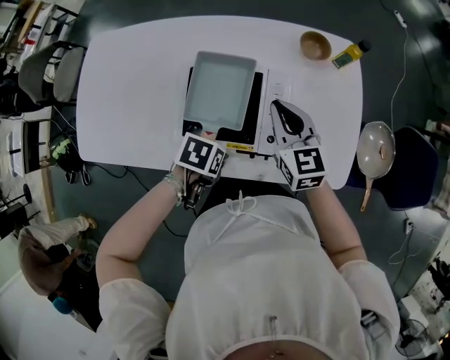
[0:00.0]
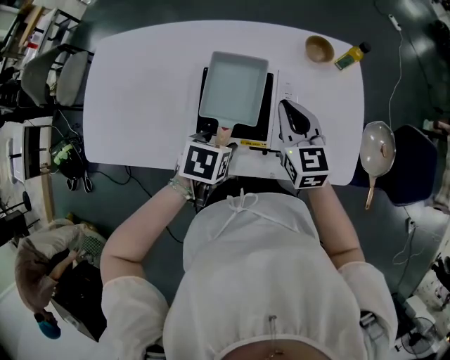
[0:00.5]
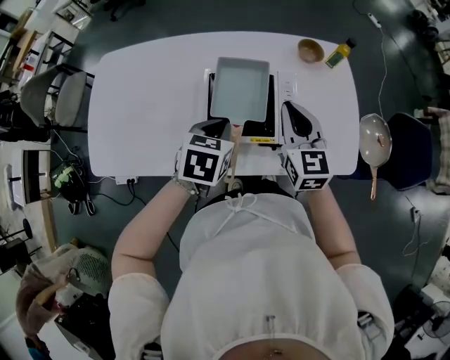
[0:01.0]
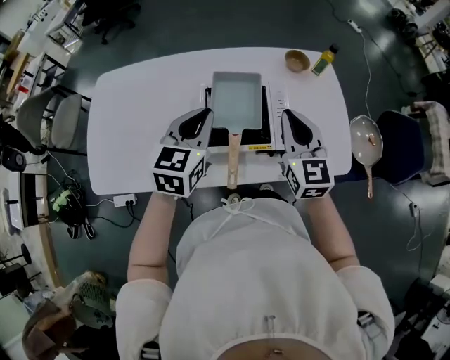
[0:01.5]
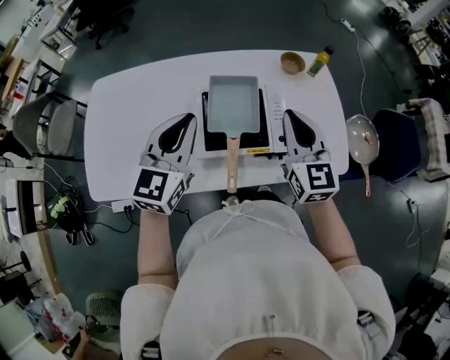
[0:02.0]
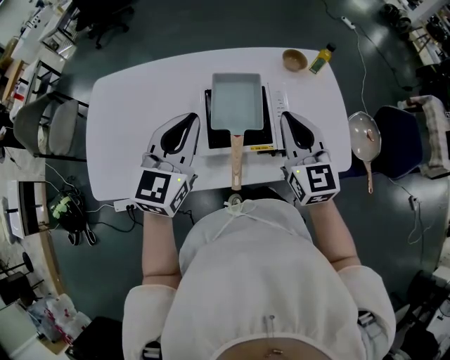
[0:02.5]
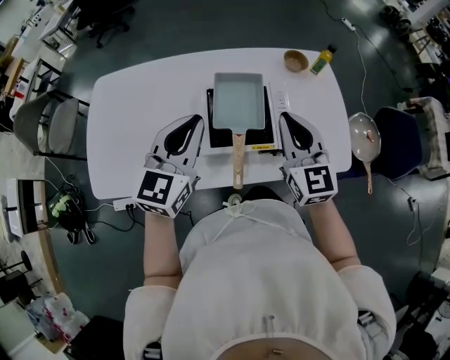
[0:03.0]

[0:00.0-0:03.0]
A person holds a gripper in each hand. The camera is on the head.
0:00.0 to 0:01.5: The right gripper goes about 15 cm upward and backward, and rotates approximately 20 degrees, while the left gripper moves upward and to the left, roughly 25 cm, tilts its fingers roughly 50 degrees upward, and closes its fingers.
0:01.5 to 0:03.0: The left gripper changes place by roughly 5 cm.

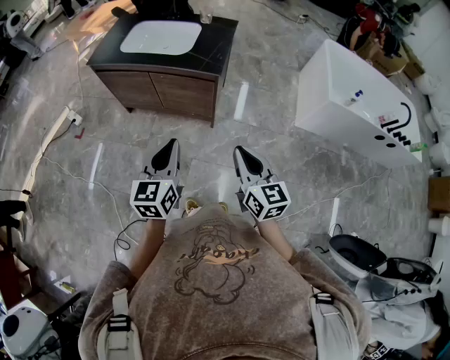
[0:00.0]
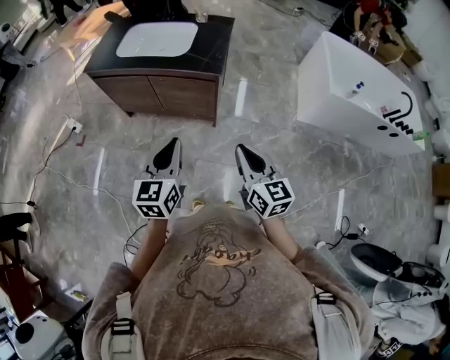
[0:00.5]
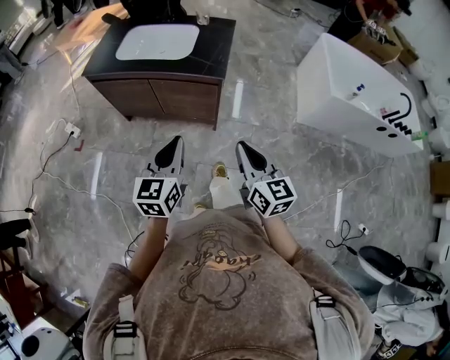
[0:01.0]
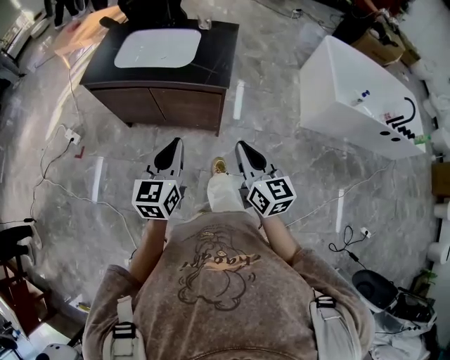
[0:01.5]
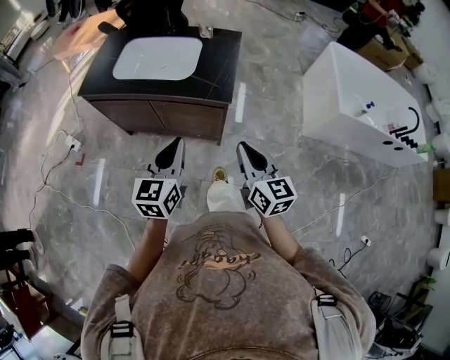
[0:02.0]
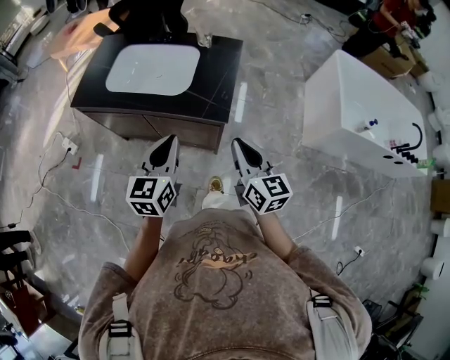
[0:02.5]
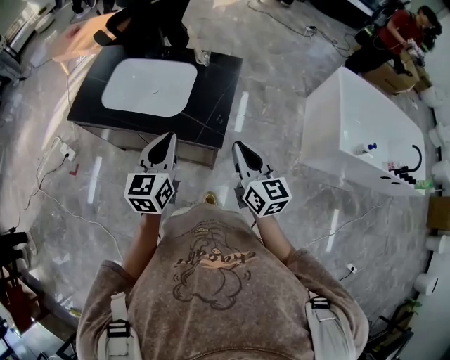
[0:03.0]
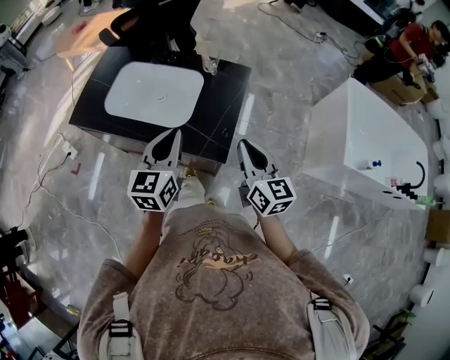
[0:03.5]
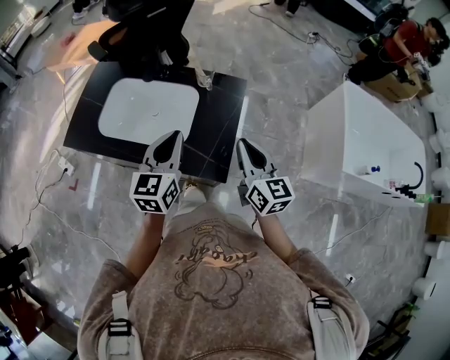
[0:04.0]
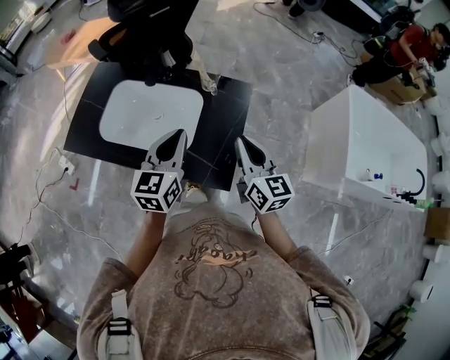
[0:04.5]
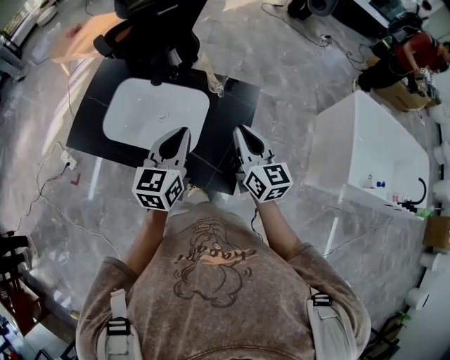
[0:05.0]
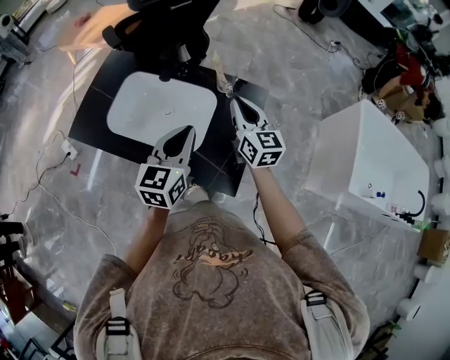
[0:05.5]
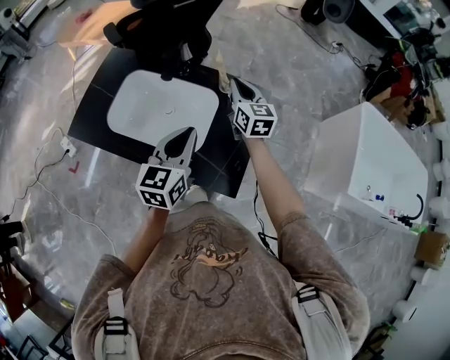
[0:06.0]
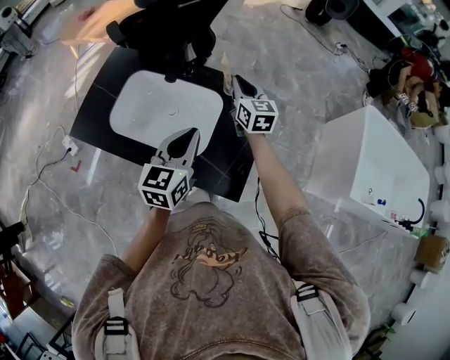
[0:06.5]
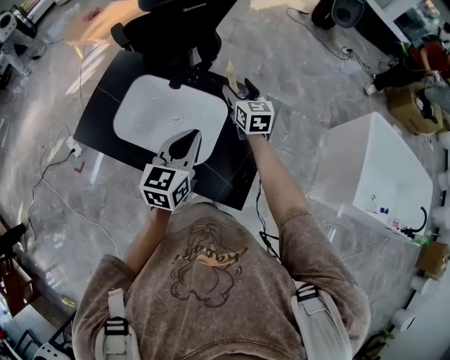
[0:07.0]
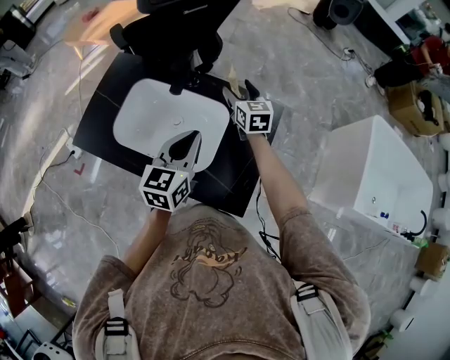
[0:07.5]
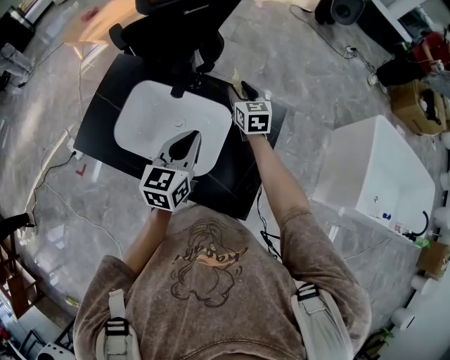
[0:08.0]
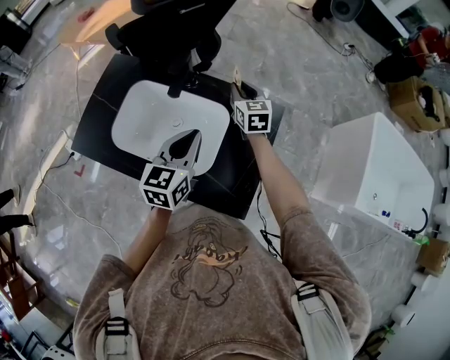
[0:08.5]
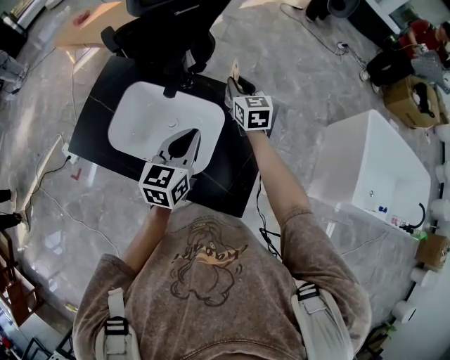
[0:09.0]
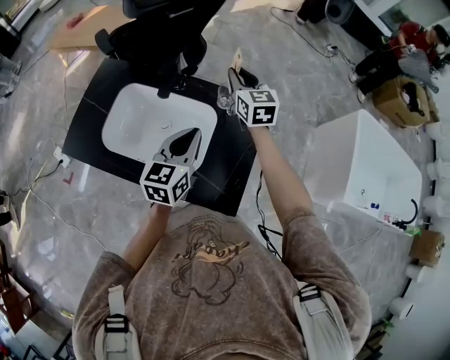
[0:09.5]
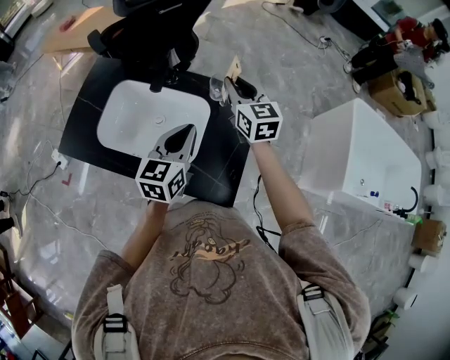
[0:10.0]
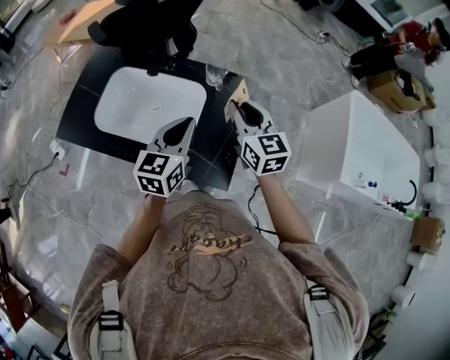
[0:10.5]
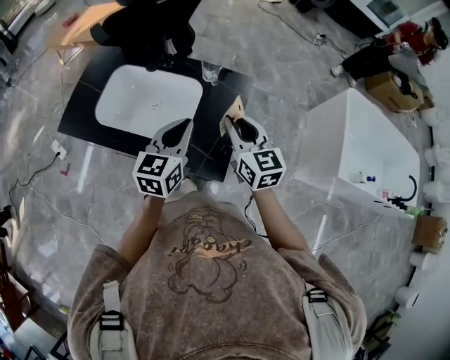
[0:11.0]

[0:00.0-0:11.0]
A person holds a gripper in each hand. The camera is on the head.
0:00.0 to 0:02.0: The grippers both shift forward by about 20 cm.
0:02.0 to 0:03.5: The grippers both shift forward by some 25 cm.
0:03.5 to 0:05.5: The left gripper travels forward by about 15 cm; the right gripper moves forward, roughly 25 cm.
0:05.5 to 0:07.5: The right gripper moves forward and downward, roughly 20 cm, and opens its fingers. Meanwhile the left gripper travels forward by approximately 5 cm.
0:07.5 to 0:09.0: The right gripper closes up.
0:09.0 to 0:11.0: The left gripper moves backward and to the right, roughly 10 cm, while the right gripper travels backward by roughly 30 cm.

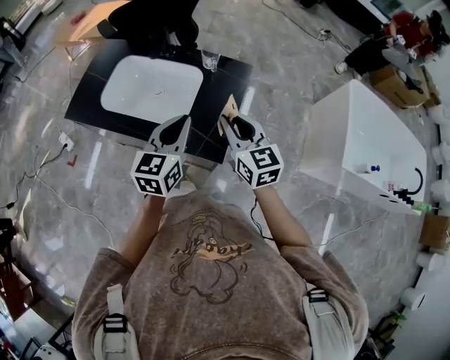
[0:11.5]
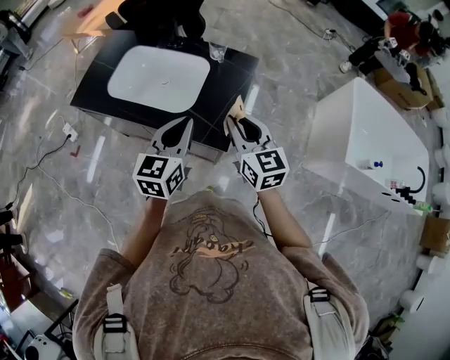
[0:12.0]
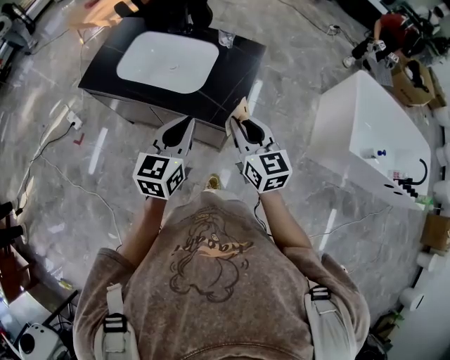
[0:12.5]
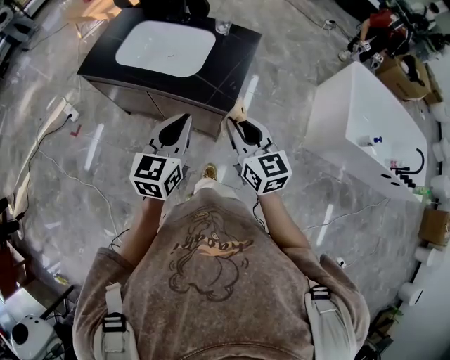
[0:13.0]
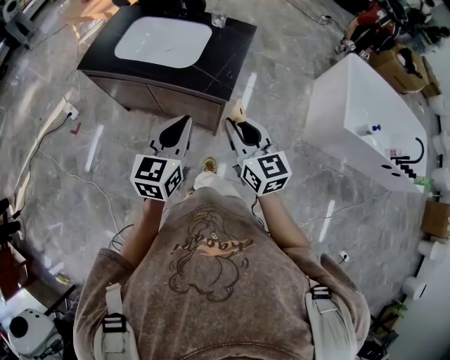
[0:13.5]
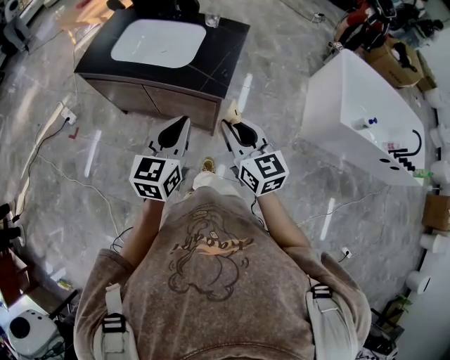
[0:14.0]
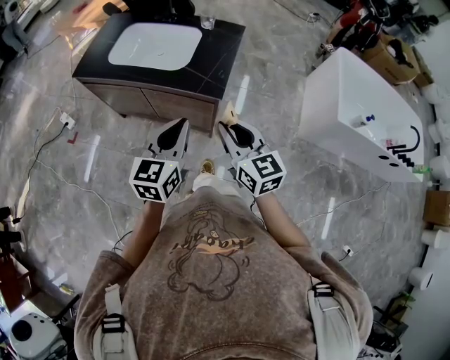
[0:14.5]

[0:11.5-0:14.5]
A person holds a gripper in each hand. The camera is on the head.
0:11.5 to 0:13.0: The two grippers go some 20 cm backward.
0:13.0 to 0:14.5: Both grippers travel together backward, approximately 5 cm.

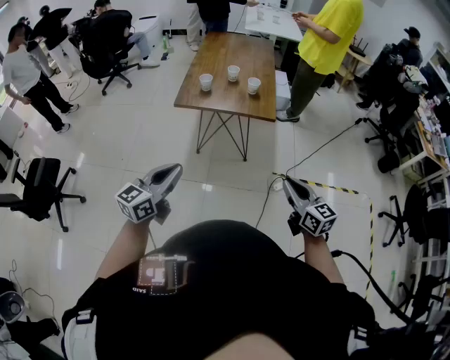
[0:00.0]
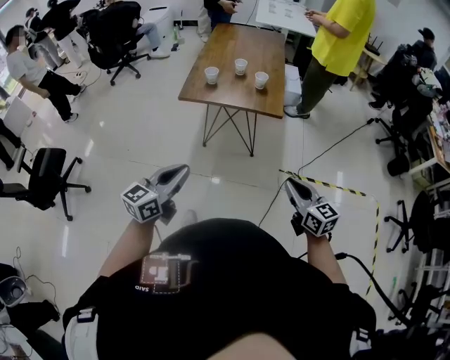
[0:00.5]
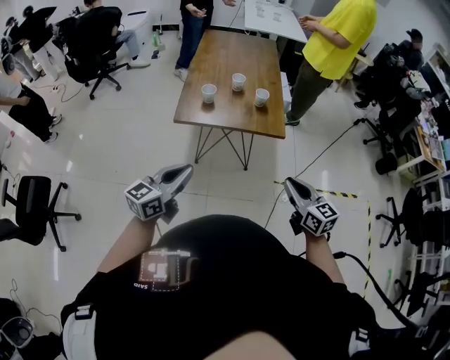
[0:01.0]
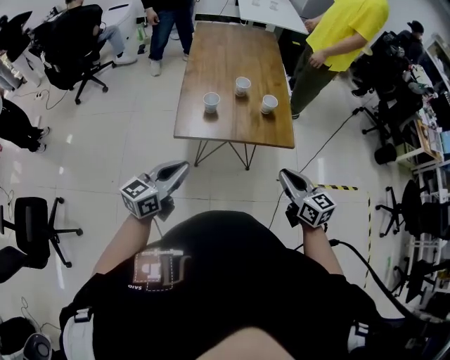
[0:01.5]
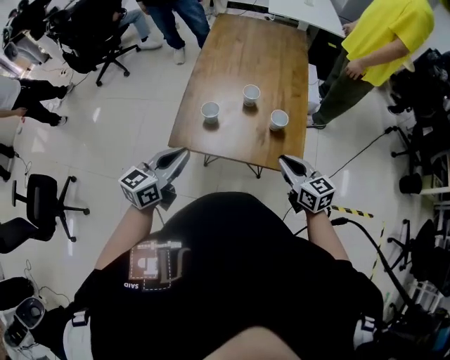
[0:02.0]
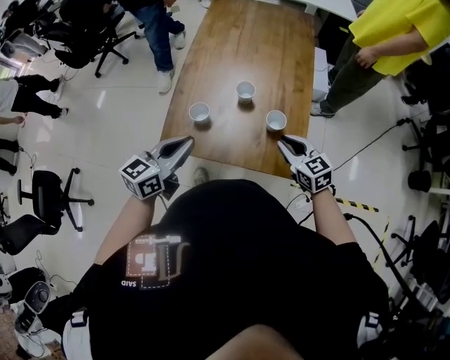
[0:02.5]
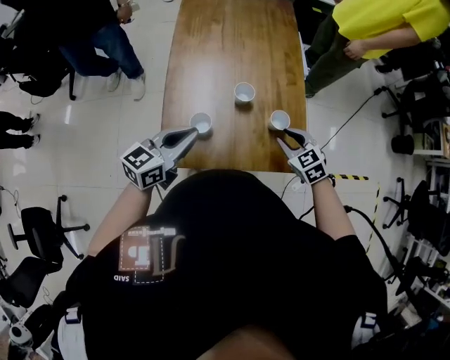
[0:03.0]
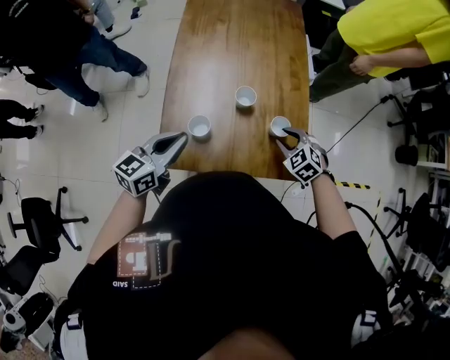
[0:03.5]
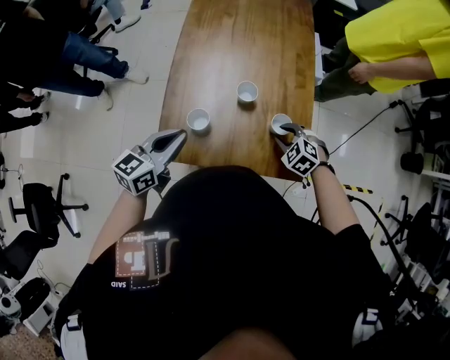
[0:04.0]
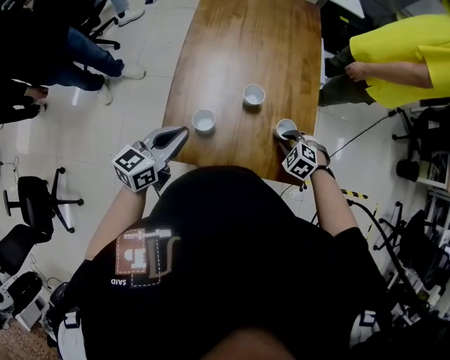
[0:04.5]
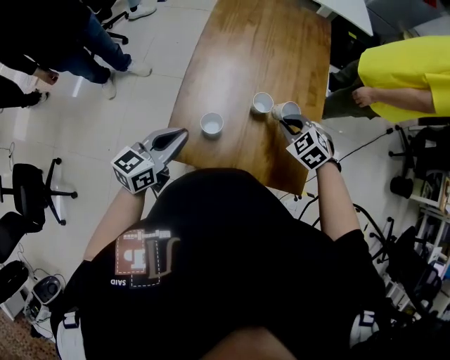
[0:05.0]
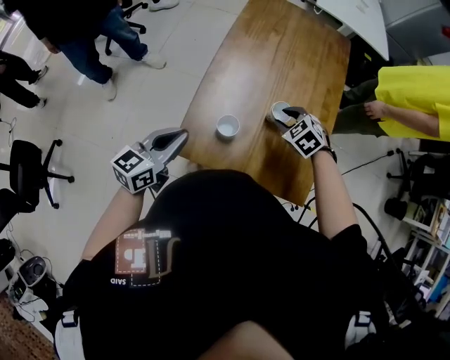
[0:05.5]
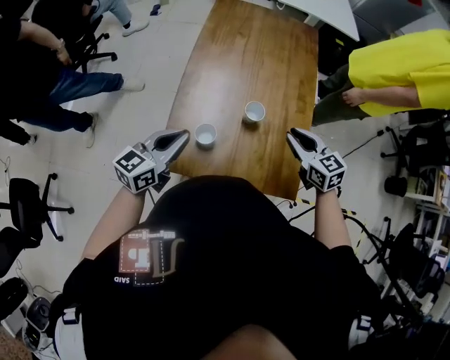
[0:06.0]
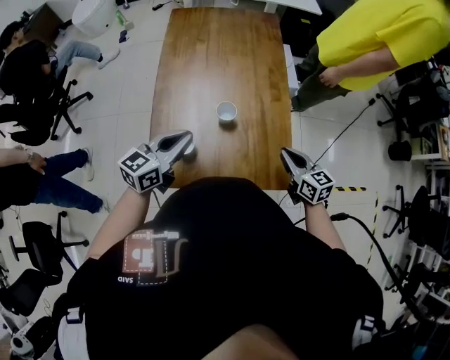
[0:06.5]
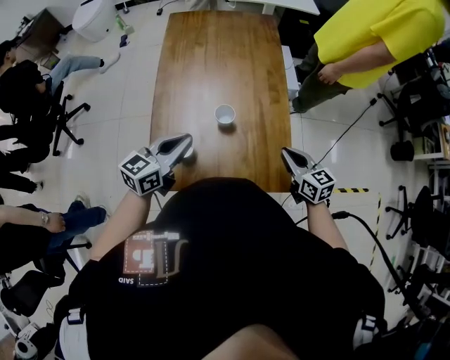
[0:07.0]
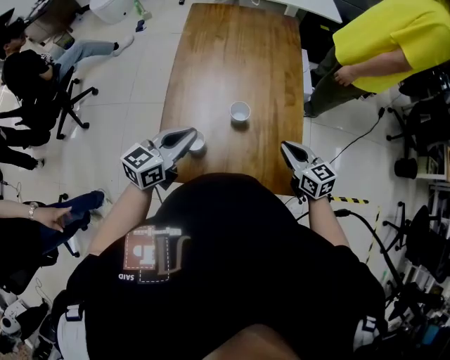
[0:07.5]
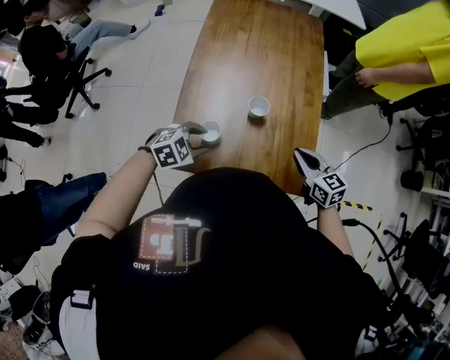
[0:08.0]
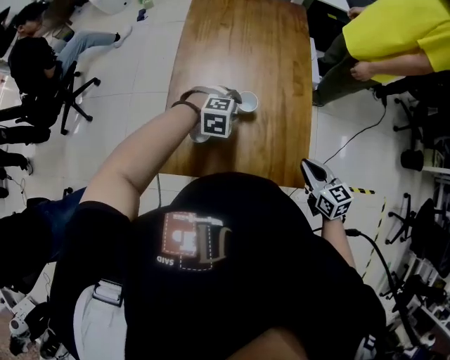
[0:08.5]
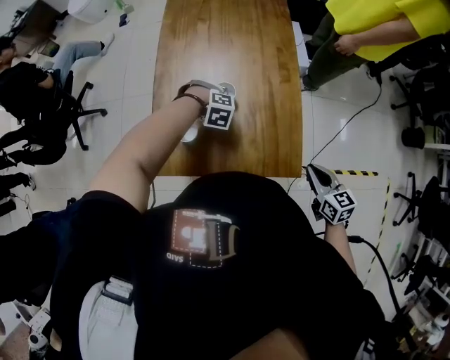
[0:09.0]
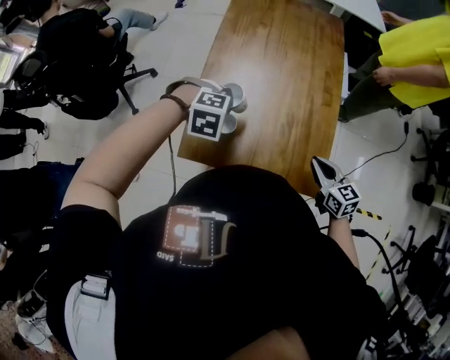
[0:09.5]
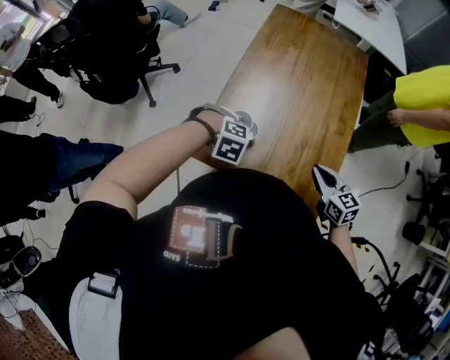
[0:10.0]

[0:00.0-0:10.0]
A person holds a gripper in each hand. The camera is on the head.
0:00.0 to 0:02.0: The pair of grippers is taken forward, about 40 cm.
0:02.0 to 0:04.0: The left gripper heads forward, covering about 15 cm. The right gripper heads forward and downward, covering roughly 20 cm, points its fingers about 40 degrees further downward, and opens its fingers.
0:04.0 to 0:06.0: The right gripper goes some 15 cm upward, and tips its fingers upward by approximately 30 degrees.
0:06.0 to 0:08.0: The left gripper heads downward and to the right, covering roughly 15 cm, points its fingers roughly 40 degrees further downward, and opens. Meanwhile the right gripper goes some 10 cm downward and backward.
0:08.0 to 0:10.0: The left gripper swings up and down, some 15 cm each way, with 2 reversals, swivels about 40 degrees, and closes.
